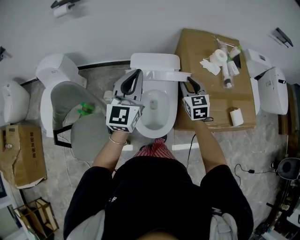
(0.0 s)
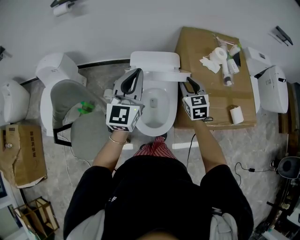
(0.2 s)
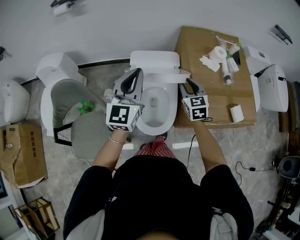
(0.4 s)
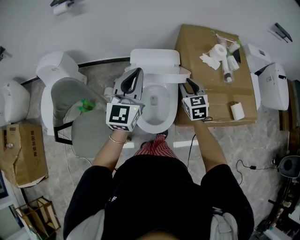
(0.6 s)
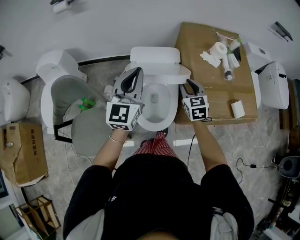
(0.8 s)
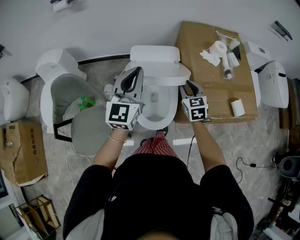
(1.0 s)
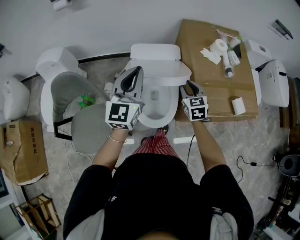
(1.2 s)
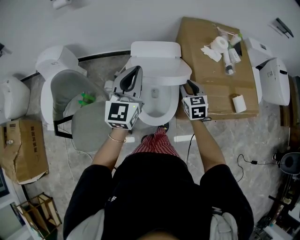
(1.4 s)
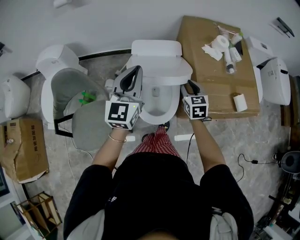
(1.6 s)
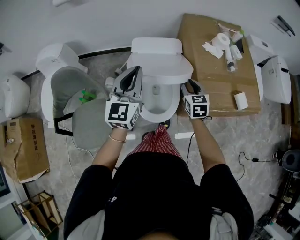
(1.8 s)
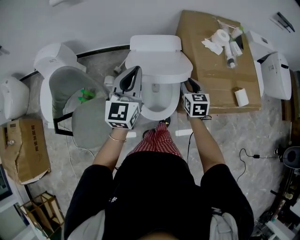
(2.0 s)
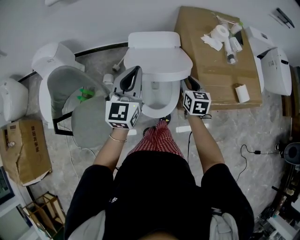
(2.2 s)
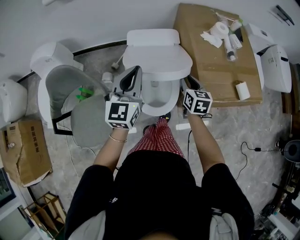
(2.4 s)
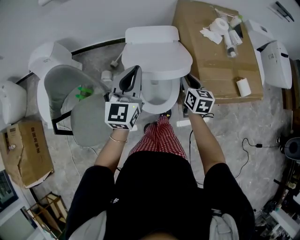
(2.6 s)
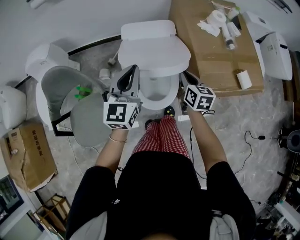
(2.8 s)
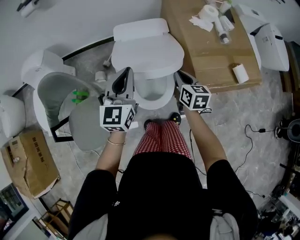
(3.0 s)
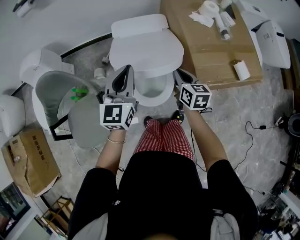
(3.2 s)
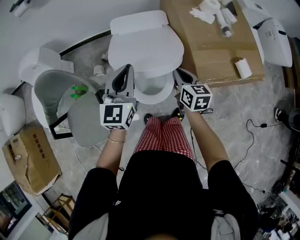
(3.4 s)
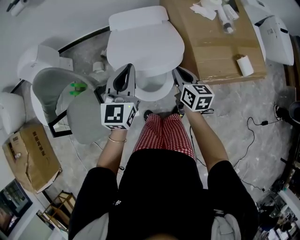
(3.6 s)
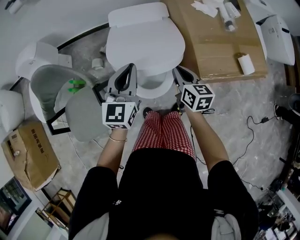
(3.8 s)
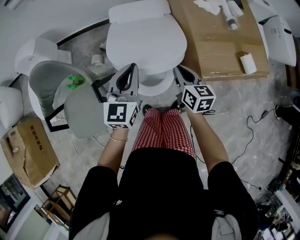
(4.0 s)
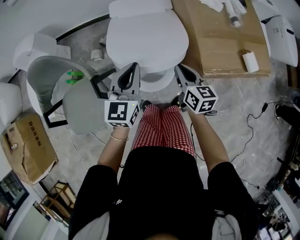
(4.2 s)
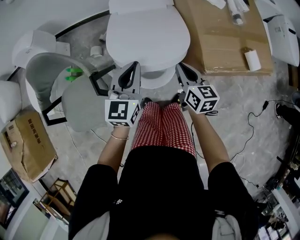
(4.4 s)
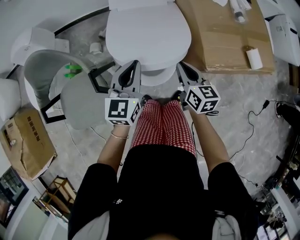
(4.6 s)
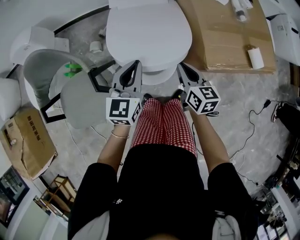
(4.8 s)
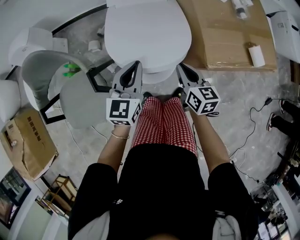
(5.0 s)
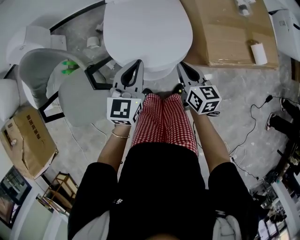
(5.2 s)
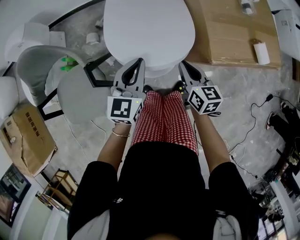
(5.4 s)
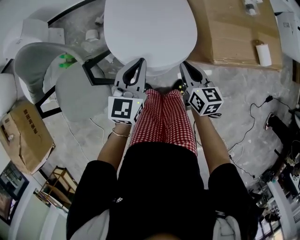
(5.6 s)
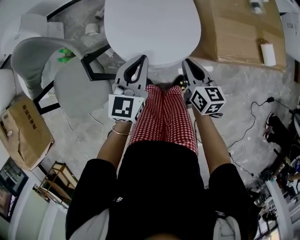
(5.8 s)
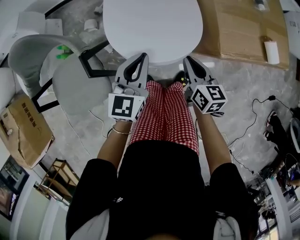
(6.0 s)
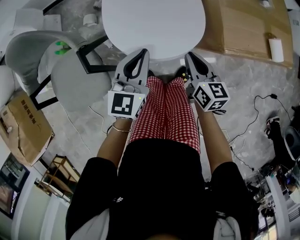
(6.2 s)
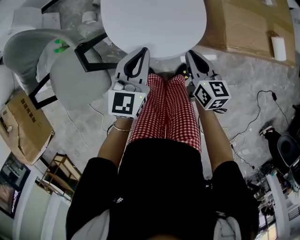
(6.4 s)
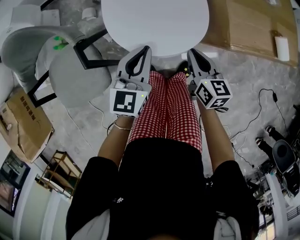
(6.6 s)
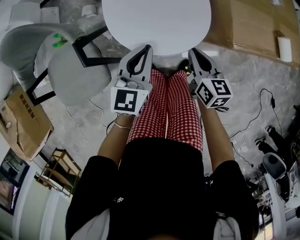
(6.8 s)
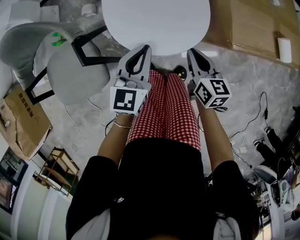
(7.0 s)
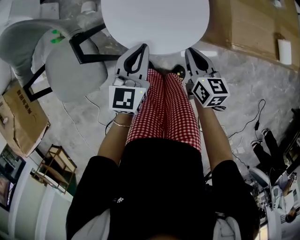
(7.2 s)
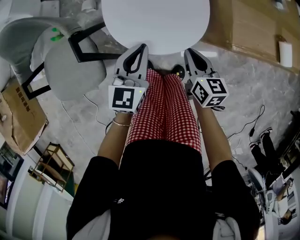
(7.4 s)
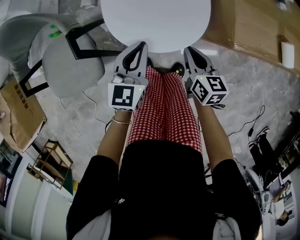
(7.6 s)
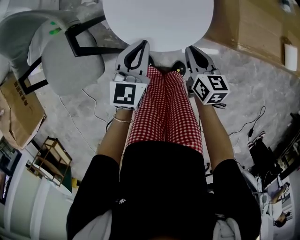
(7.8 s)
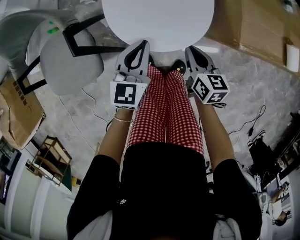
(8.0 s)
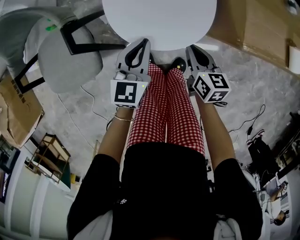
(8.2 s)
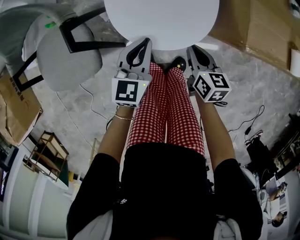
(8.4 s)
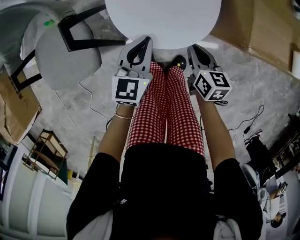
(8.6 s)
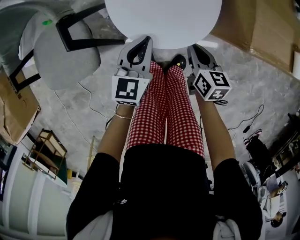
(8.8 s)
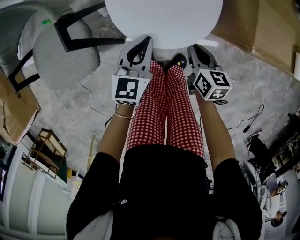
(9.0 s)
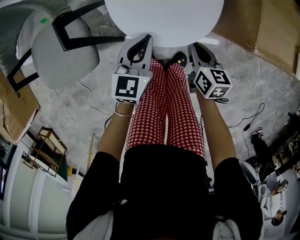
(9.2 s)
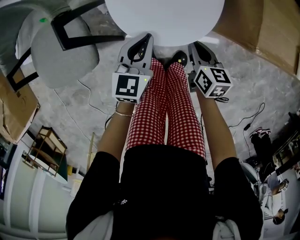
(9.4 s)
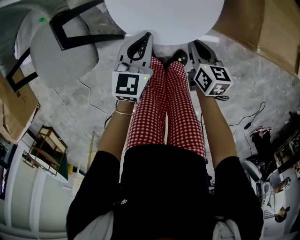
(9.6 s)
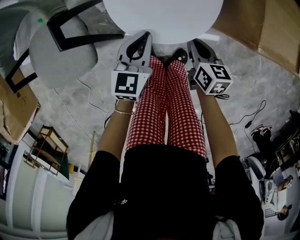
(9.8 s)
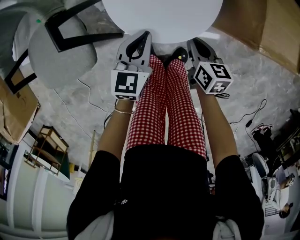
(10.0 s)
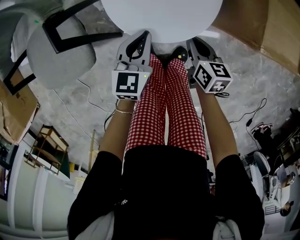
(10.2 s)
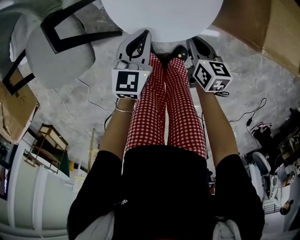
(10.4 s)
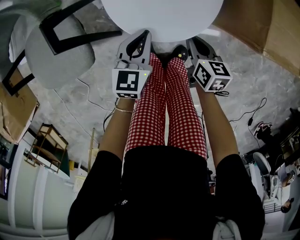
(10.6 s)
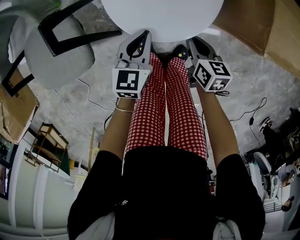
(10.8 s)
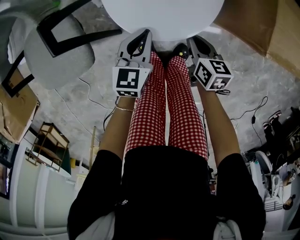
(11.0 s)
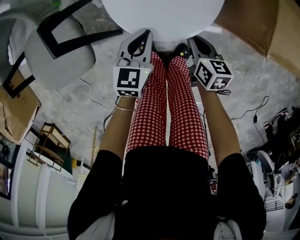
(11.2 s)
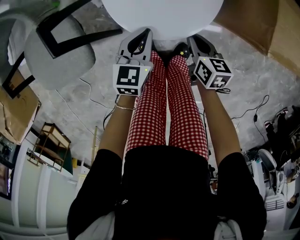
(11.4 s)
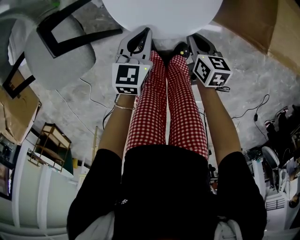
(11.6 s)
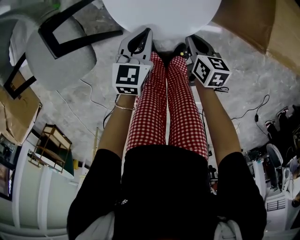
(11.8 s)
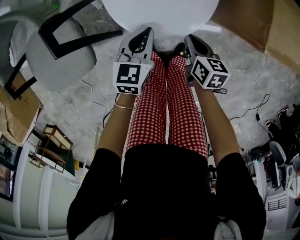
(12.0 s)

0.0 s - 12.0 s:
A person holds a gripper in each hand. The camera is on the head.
0.0 s - 1.6 s: The left gripper is displaced backward by approximately 5 cm; the right gripper travels backward and downward by roughly 10 cm.
1.6 s - 3.0 s: The right gripper moves some 5 cm, and swivels approximately 30 degrees, while the left gripper goes about 10 cm downward.
3.0 s - 4.4 s: The left gripper shifts some 10 cm downward. The right gripper shifts by roughly 5 cm.
4.4 s - 6.0 s: Both grippers travel together downward, about 10 cm.
6.0 s - 7.6 s: Both grippers move downward, roughly 5 cm.
7.6 s - 9.0 s: The grippers both shift downward by roughly 5 cm.
9.0 s - 10.4 s: The left gripper goes about 5 cm downward.
10.4 s - 12.0 s: The grippers move only a little.

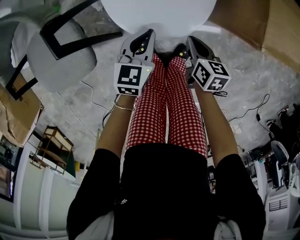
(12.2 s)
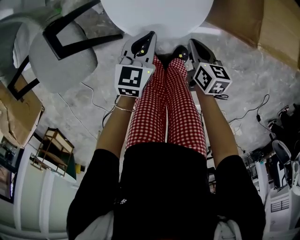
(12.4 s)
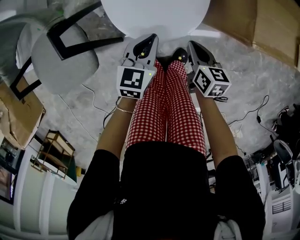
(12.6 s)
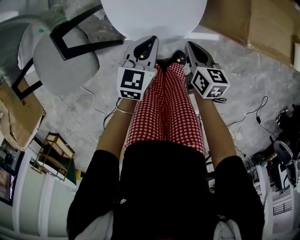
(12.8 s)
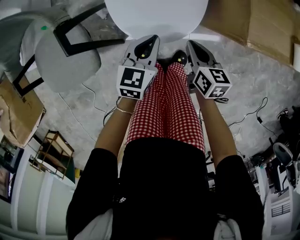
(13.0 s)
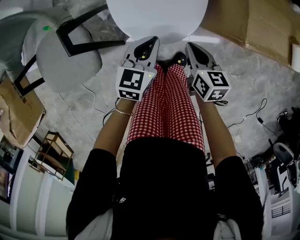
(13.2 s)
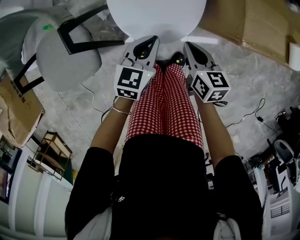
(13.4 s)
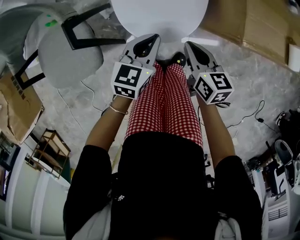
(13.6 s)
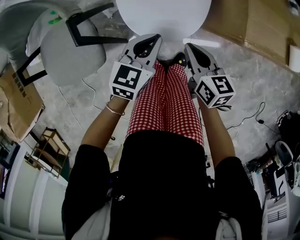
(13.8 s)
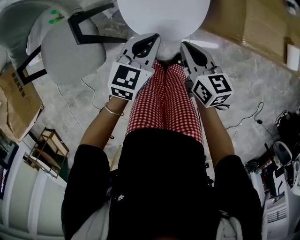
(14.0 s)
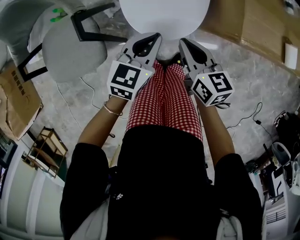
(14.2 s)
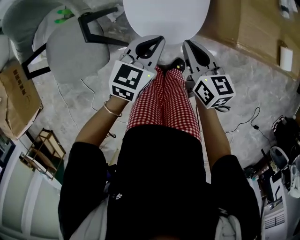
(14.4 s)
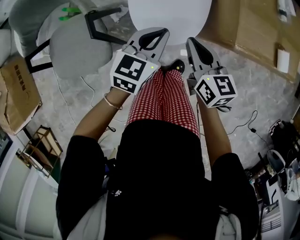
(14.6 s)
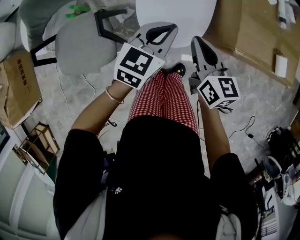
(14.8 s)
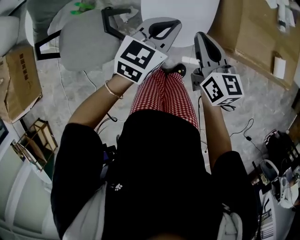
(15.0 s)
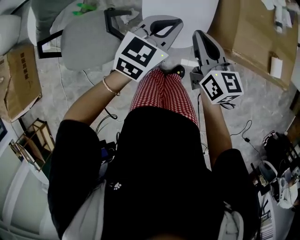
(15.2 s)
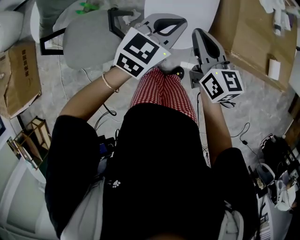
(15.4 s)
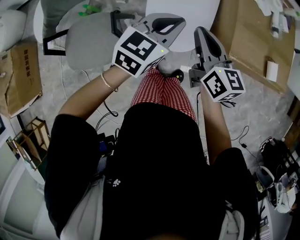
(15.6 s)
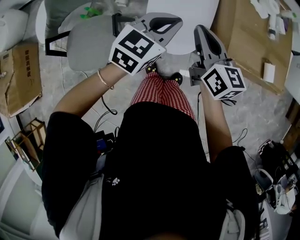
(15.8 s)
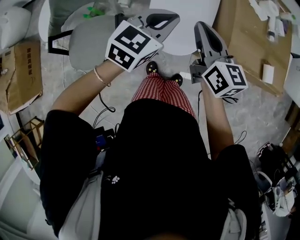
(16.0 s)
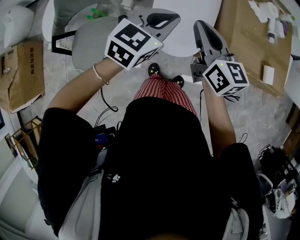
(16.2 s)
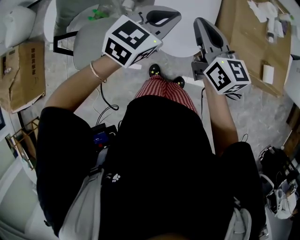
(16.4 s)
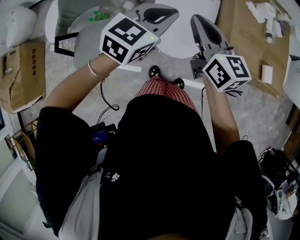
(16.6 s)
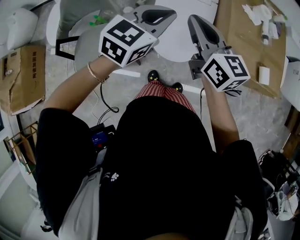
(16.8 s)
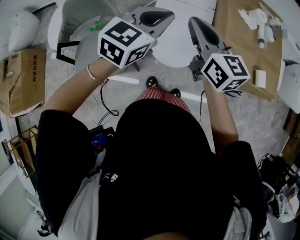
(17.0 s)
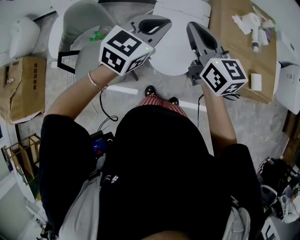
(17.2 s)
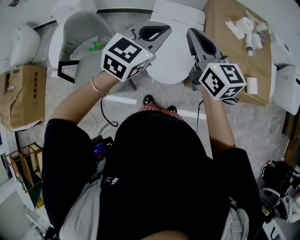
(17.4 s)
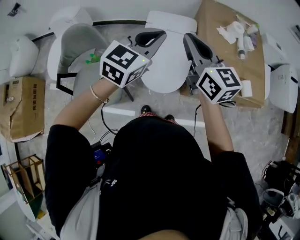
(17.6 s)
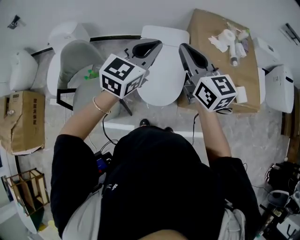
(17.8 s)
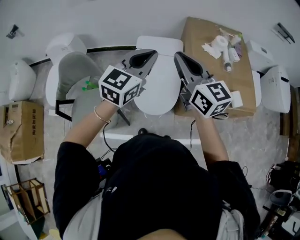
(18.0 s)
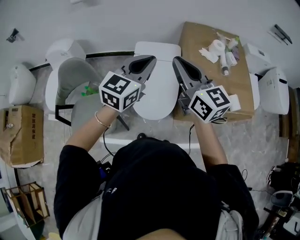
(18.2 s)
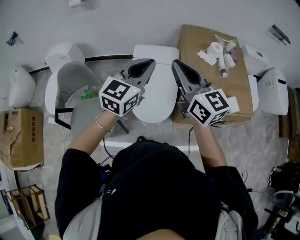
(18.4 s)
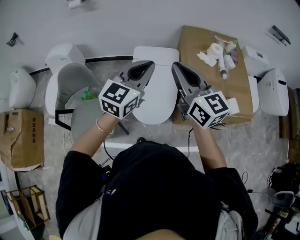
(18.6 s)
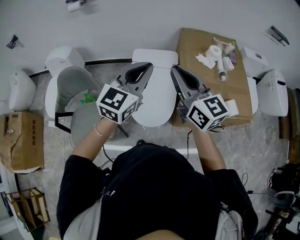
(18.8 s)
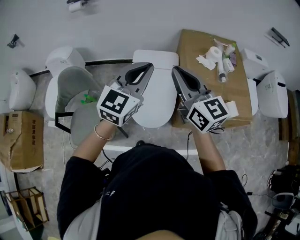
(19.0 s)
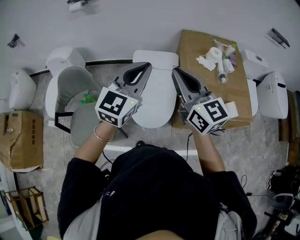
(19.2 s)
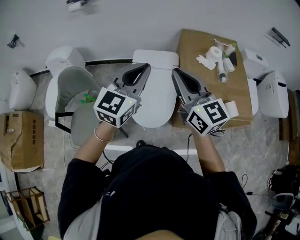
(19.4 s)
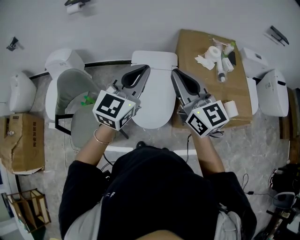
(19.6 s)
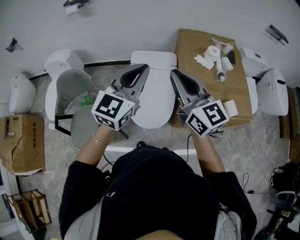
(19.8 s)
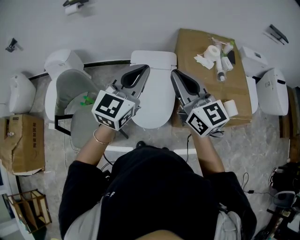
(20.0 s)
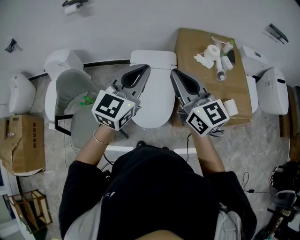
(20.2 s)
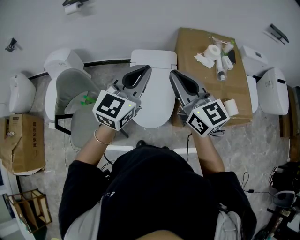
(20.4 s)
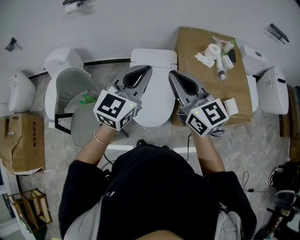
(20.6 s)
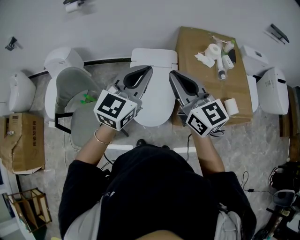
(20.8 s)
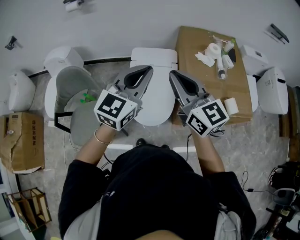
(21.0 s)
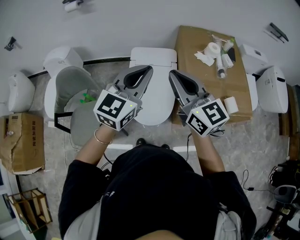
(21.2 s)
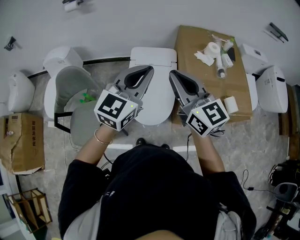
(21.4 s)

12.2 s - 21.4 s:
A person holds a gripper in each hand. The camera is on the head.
12.2 s - 13.8 s: The grippers both shift upward by about 15 cm.
13.8 s - 15.2 s: The grippers both shift upward by roughly 20 cm.
15.2 s - 16.8 s: The grippers both shift upward by approximately 15 cm.
16.8 s - 18.4 s: Both grippers move upward and to the right, some 15 cm.
18.4 s - 21.4 s: The grippers make only small movements.

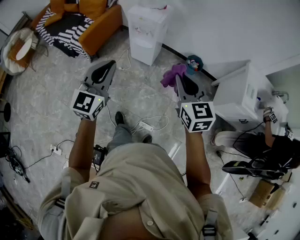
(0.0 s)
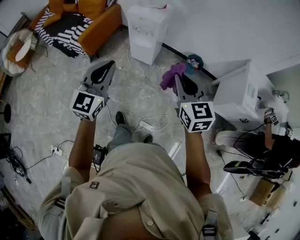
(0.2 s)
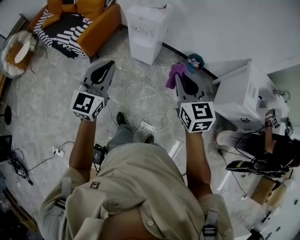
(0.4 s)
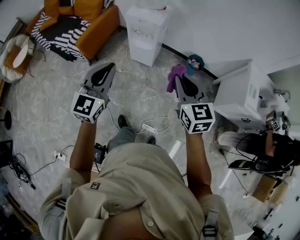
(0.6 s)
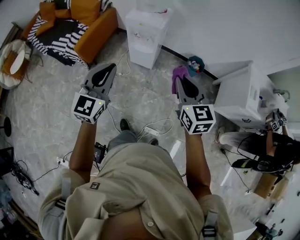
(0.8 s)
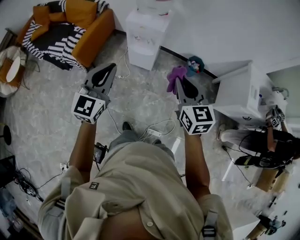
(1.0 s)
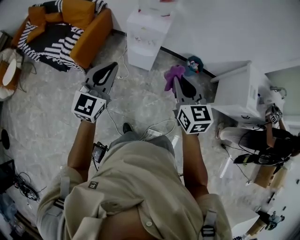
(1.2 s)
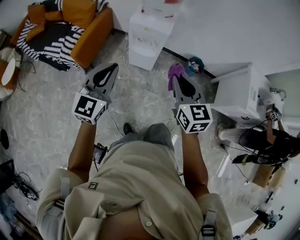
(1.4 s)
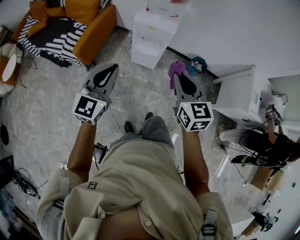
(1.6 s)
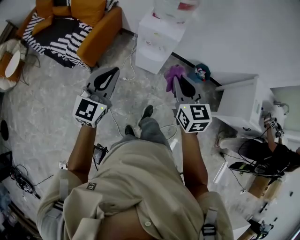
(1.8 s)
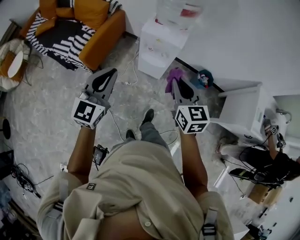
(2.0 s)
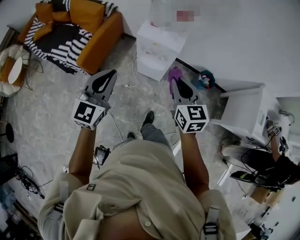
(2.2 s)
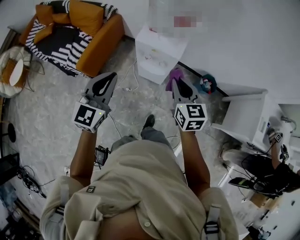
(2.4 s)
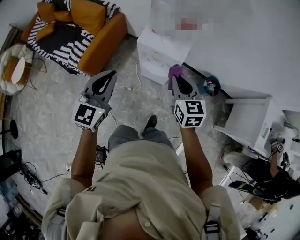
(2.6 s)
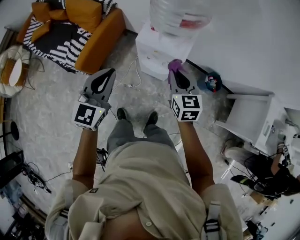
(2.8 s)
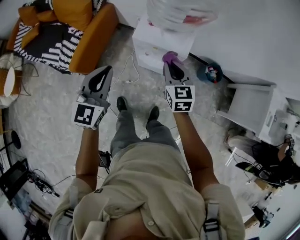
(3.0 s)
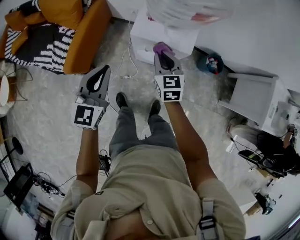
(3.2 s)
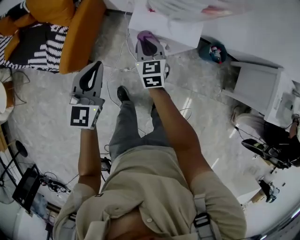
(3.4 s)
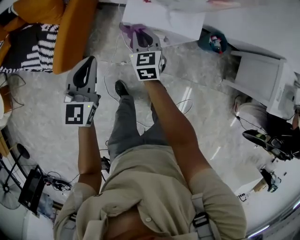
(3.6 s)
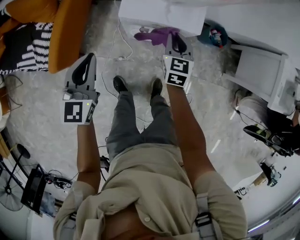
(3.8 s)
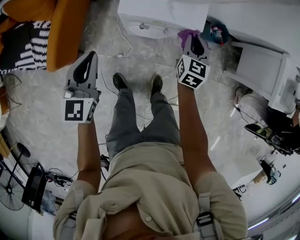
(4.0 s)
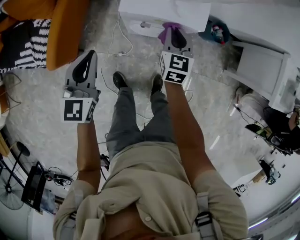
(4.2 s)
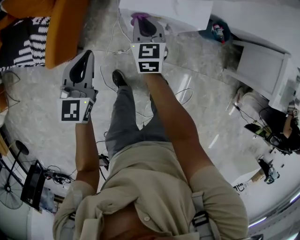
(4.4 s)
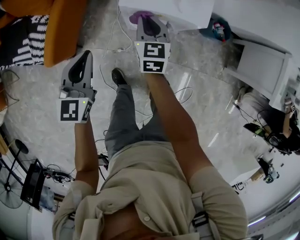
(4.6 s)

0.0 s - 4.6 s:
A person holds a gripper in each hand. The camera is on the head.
0.0 s - 1.6 s: The right gripper heads to the left and forward, covering some 25 cm. Meanwhile the left gripper travels forward and to the left by roughly 25 cm.
1.6 s - 3.0 s: The right gripper shifts about 40 cm forward and downward. Meanwhile the left gripper travels forward by approximately 30 cm.
3.0 s - 4.6 s: The right gripper goes left and right, approximately 20 cm each way, reversing 2 times, while the left gripper travels downward and forward by some 20 cm.
